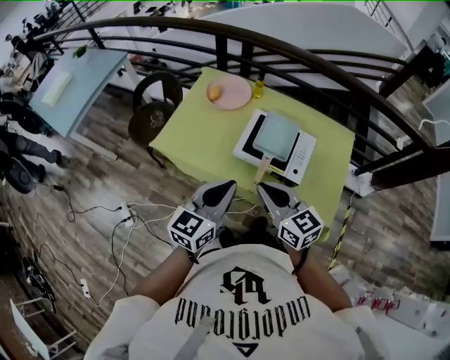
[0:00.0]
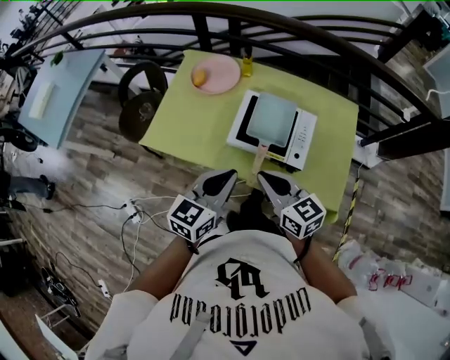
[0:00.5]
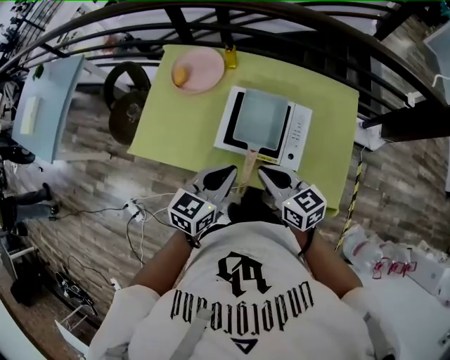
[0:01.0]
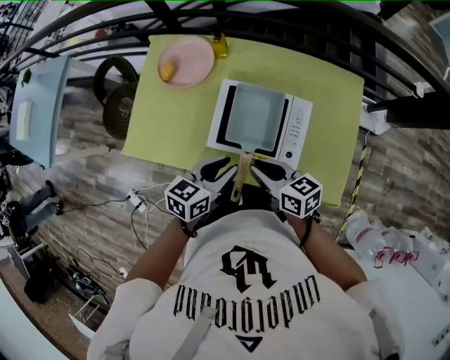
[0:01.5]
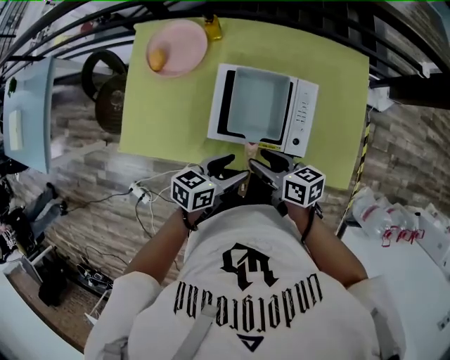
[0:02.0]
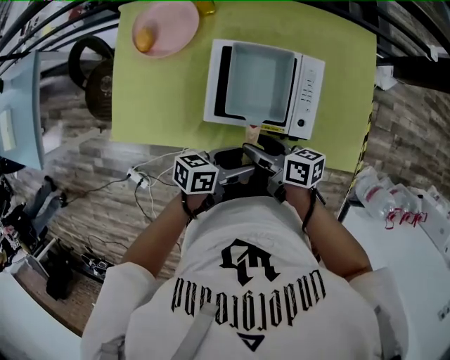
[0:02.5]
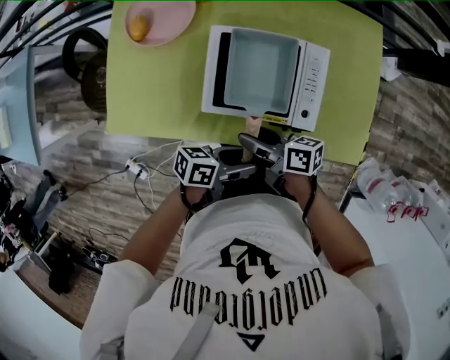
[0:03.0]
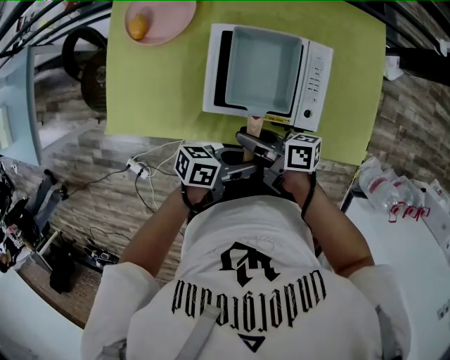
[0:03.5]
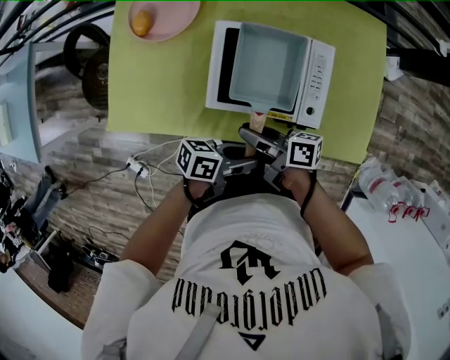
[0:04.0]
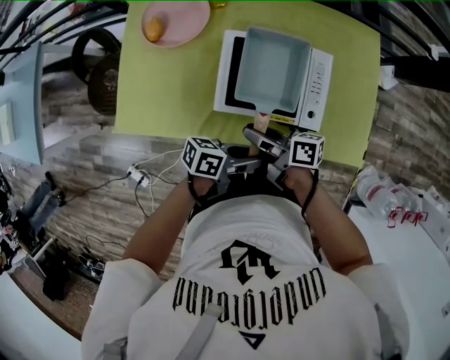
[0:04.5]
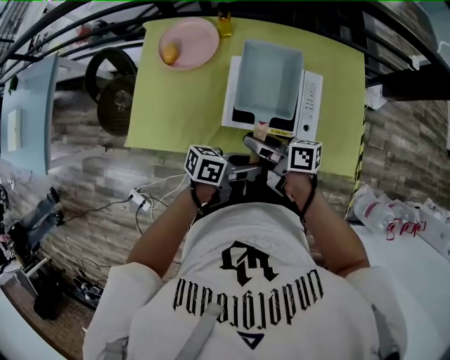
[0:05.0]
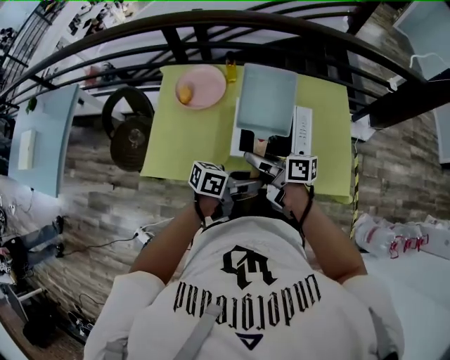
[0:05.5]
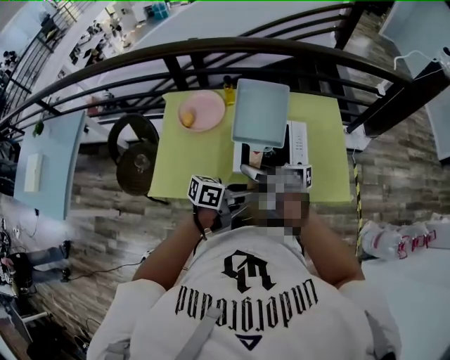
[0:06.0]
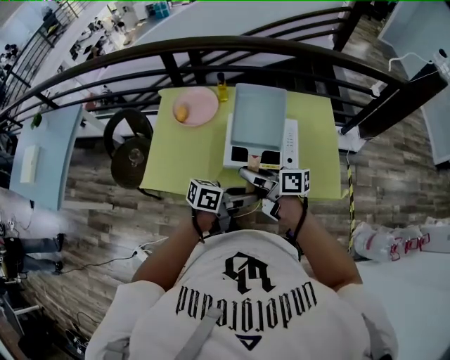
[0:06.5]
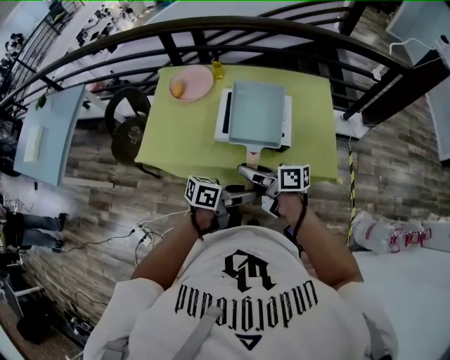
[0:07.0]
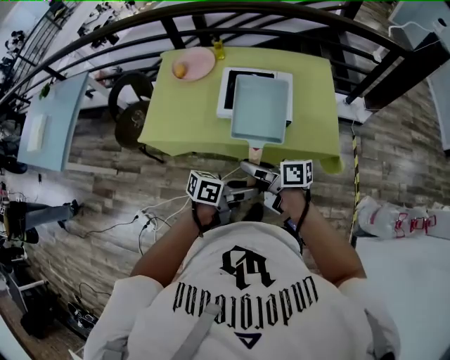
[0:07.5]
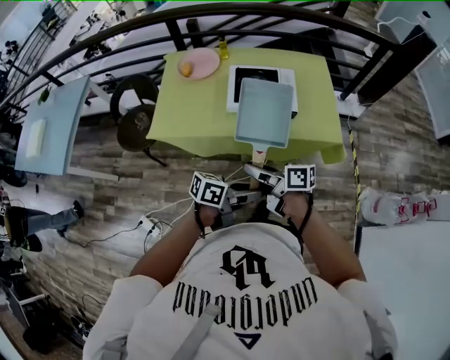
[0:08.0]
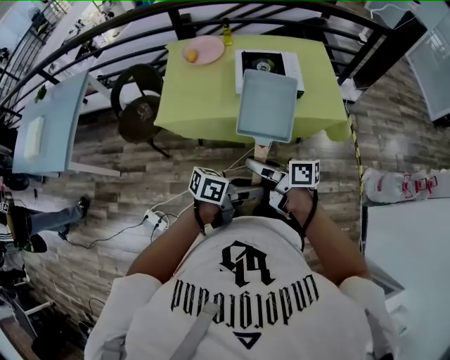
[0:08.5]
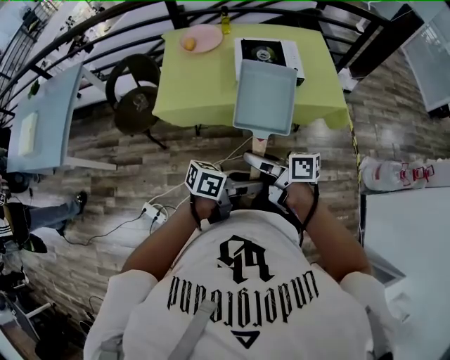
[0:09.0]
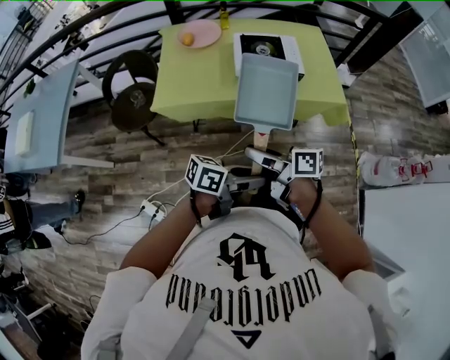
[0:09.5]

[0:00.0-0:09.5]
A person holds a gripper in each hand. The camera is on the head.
0.0 to 2.0 s: The left gripper is displaced downward, forward and to the right by roughly 30 cm, changes its angle by approximately 50 degrees, and opens, while the right gripper shifts approximately 25 cm downward and forward, rolls clockwise, seen from behind, by about 40 degrees, and opens.
2.0 to 4.0 s: The left gripper shifts by approximately 10 cm, rotates some 30 degrees, and closes; the right gripper ends up some 5 cm from where it was, turns by roughly 30 degrees, and closes its fingers.
4.0 to 5.5 s: The two grippers go some 15 cm upward.
5.5 to 7.5 s: The left gripper ends up roughly 20 cm from where it was, while the right gripper changes place by approximately 20 cm.
7.5 to 9.5 s: The right gripper shifts by roughly 20 cm; the left gripper shifts by roughly 20 cm.

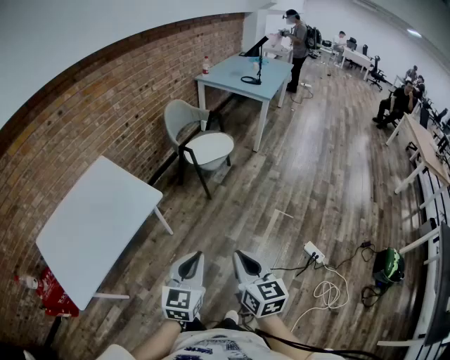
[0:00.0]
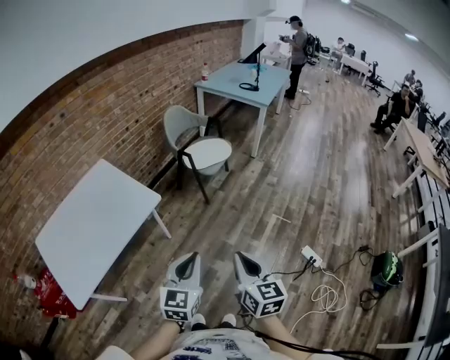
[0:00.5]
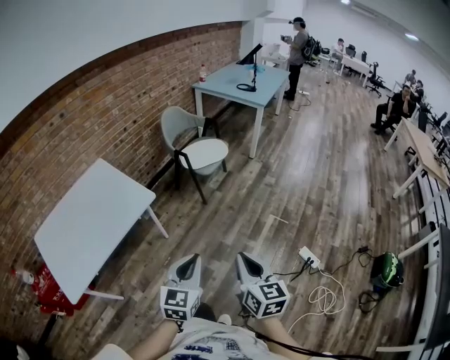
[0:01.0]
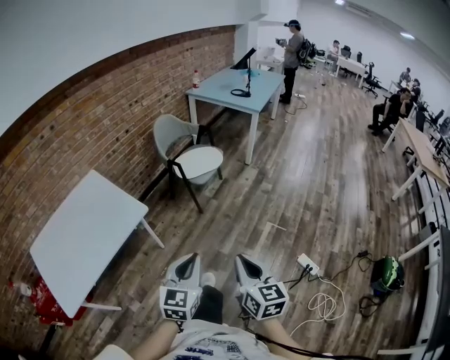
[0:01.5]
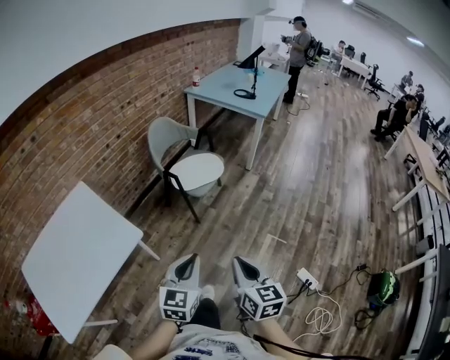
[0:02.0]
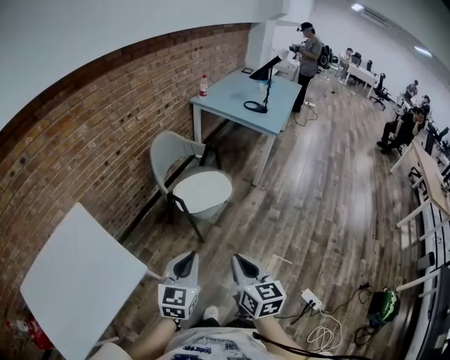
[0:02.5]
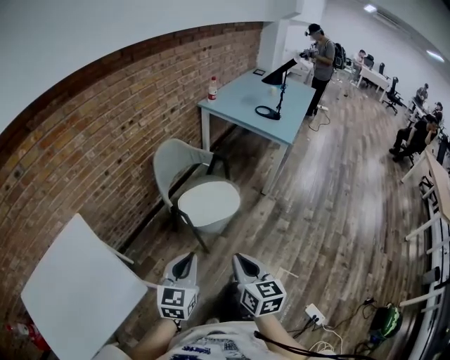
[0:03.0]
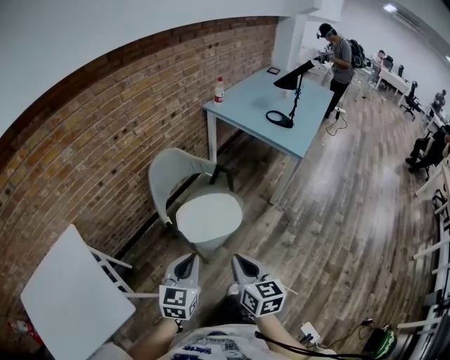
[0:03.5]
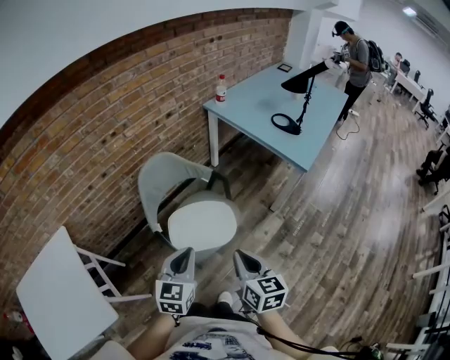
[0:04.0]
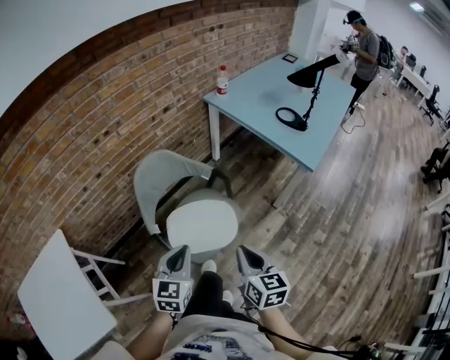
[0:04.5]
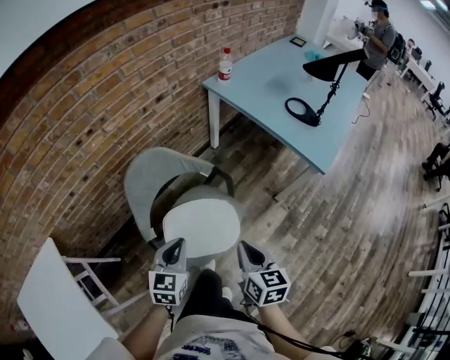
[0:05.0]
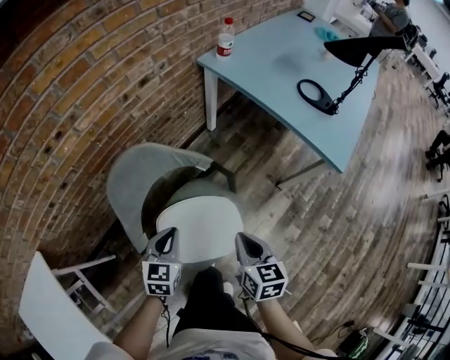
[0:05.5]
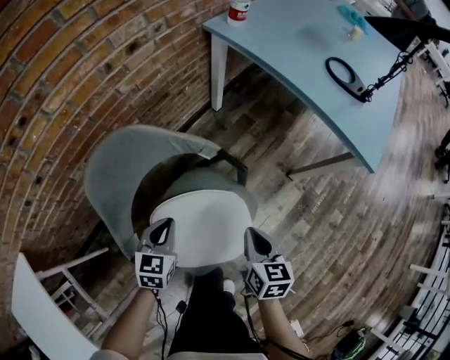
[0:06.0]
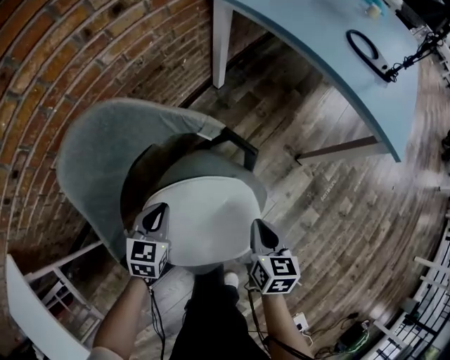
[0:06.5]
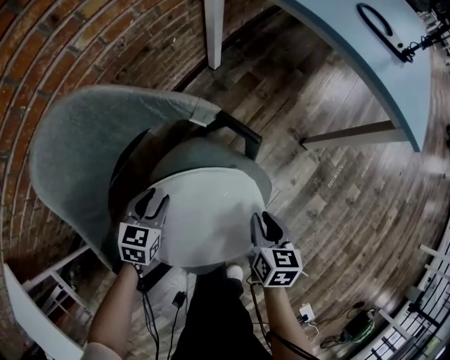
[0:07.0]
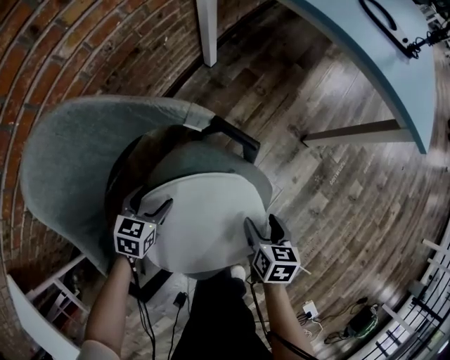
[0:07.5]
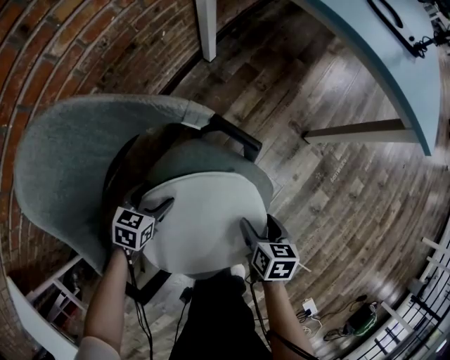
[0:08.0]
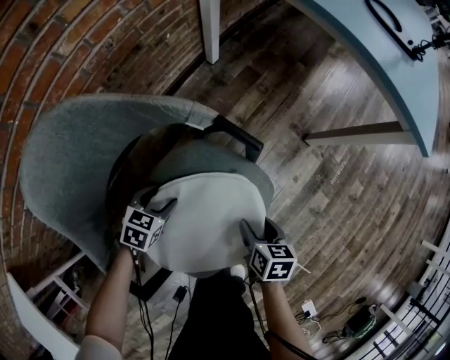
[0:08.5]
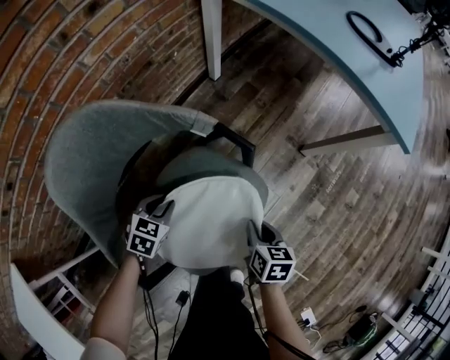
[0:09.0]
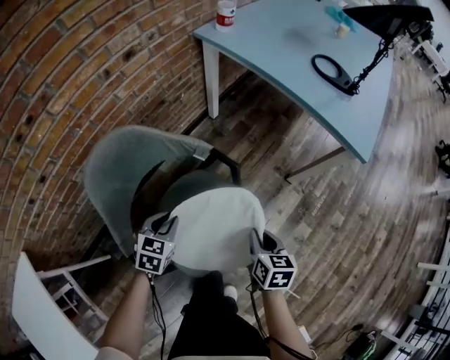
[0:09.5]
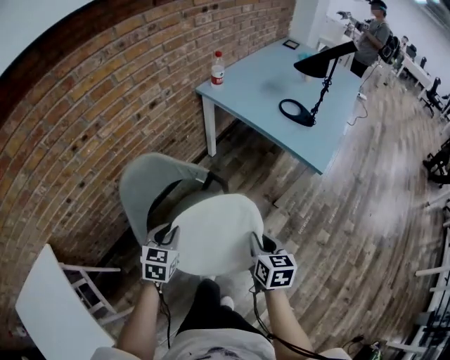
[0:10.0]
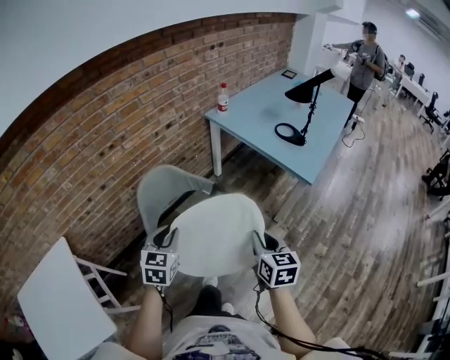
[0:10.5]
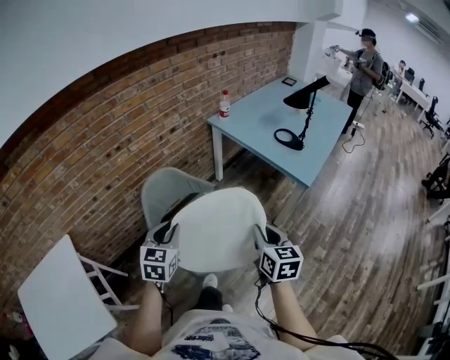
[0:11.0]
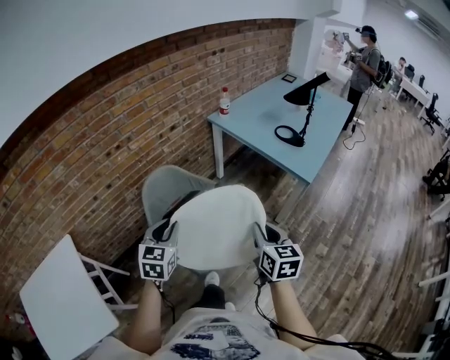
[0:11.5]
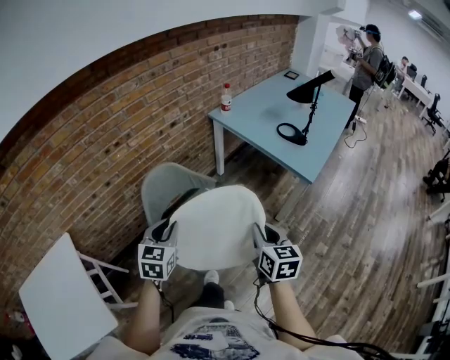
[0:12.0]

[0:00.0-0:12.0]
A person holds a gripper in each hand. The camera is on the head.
0.0 to 2.0 s: Both grippers move forward, roughly 20 cm.
2.0 to 4.0 s: Both grippers are carried forward, about 60 cm.
4.0 to 6.0 s: The two grippers go approximately 40 cm downward and forward.
6.0 to 8.0 s: Both grippers travel together downward, roughly 25 cm. The right gripper changes its angle by some 20 degrees, and opens up, while the left gripper rotates roughly 20 degrees, and opens its fingers.
8.0 to 10.0 s: The grippers both shift upward by about 40 cm. The right gripper rotates roughly 30 degrees, and closes its fingers; the left gripper rotates some 30 degrees, and closes up.
10.0 to 12.0 s: The two grippers go roughly 20 cm upward and backward.

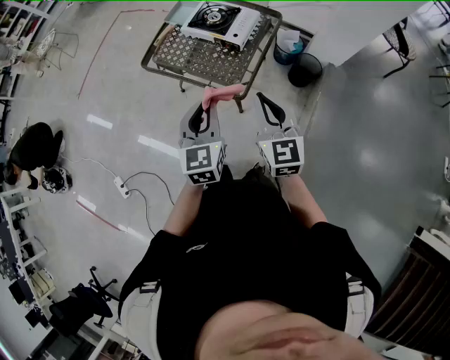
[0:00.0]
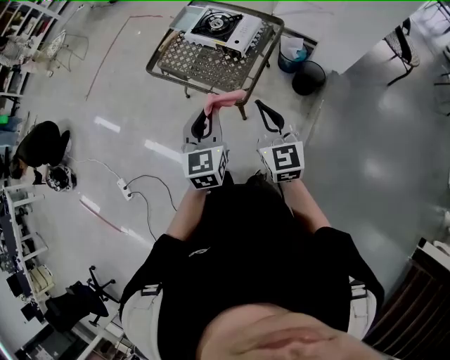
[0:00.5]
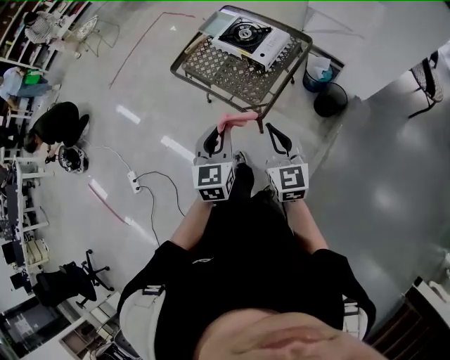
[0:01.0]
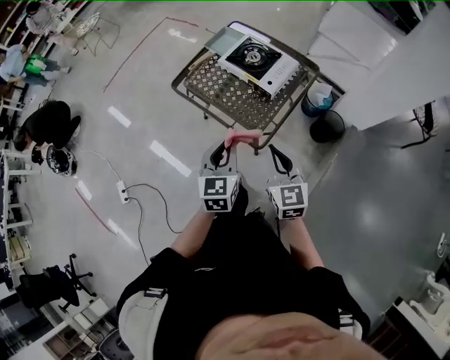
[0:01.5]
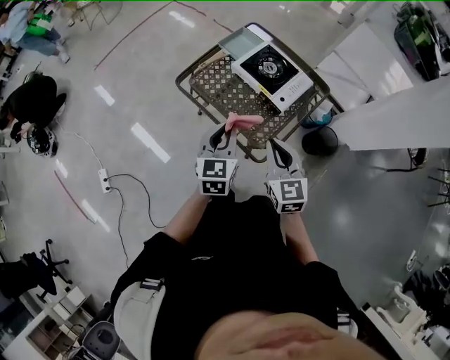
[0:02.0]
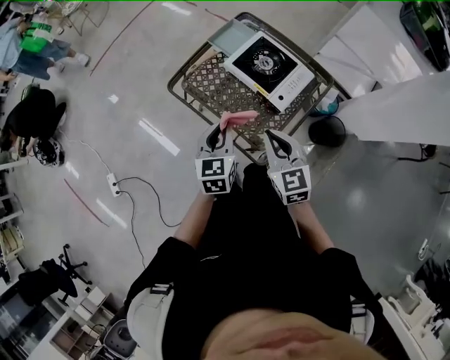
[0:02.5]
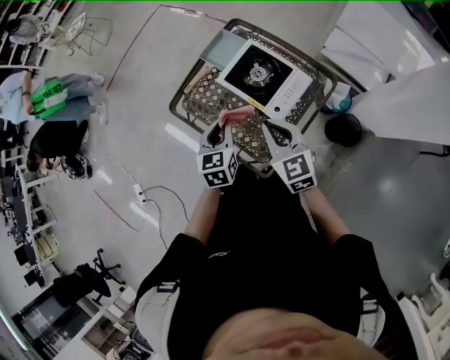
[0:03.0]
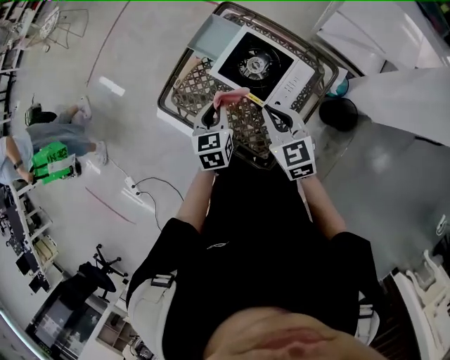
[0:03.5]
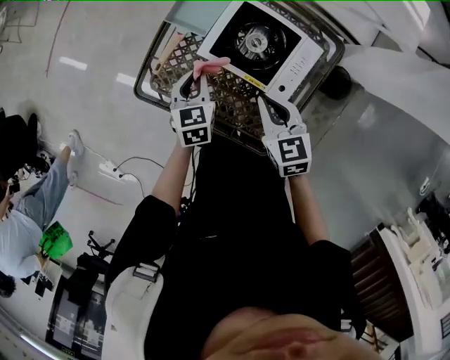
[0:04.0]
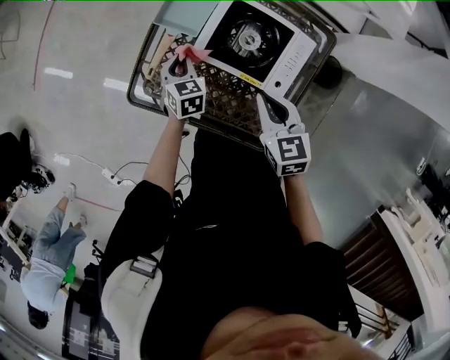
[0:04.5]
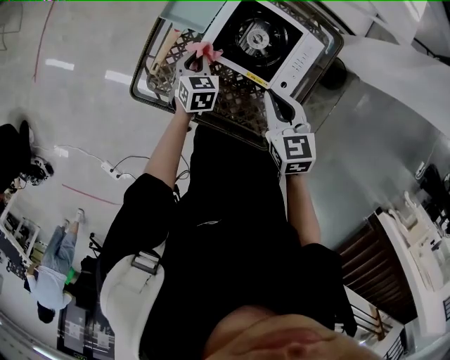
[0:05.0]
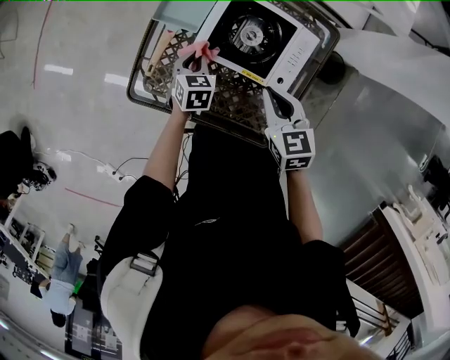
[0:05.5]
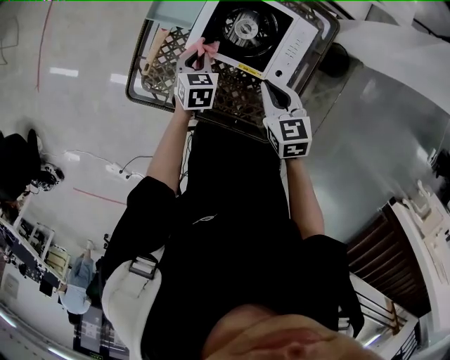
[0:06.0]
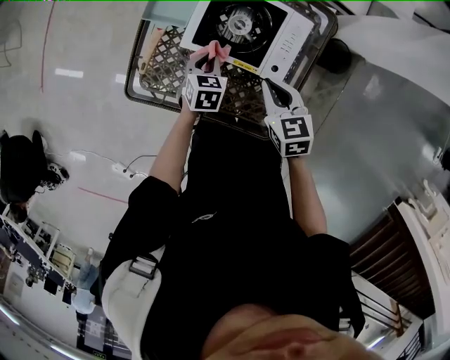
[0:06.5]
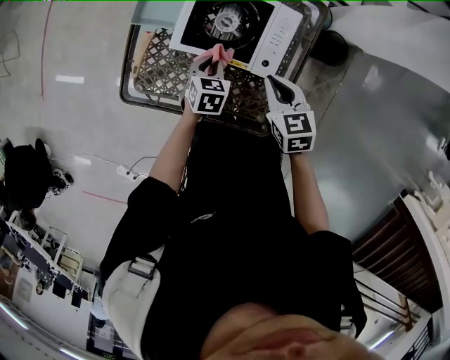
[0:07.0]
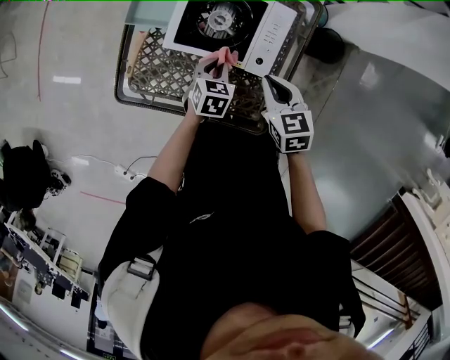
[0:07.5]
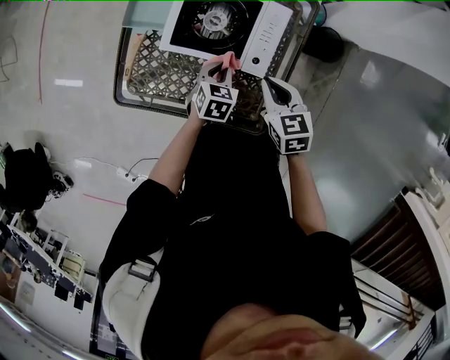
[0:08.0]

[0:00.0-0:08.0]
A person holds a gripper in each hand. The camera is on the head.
0.0 to 2.0 s: The left gripper travels forward by about 20 cm; the right gripper goes approximately 20 cm forward and to the left.
2.0 to 4.0 s: Both grippers move forward and downward, roughly 35 cm. The left gripper turns by some 20 degrees. Meanwhile the right gripper changes its angle by about 20 degrees.
4.0 to 6.0 s: The right gripper is displaced downward by some 5 cm. The left gripper is displaced downward by about 10 cm.
6.0 to 8.0 s: The left gripper is displaced to the right and backward by some 15 cm, while the right gripper shifts roughly 10 cm to the right.
